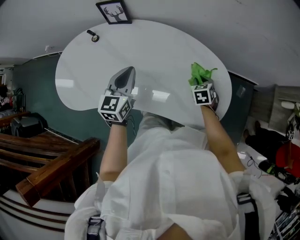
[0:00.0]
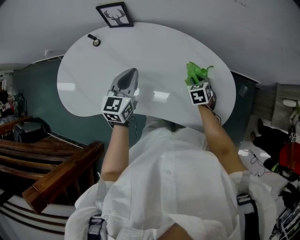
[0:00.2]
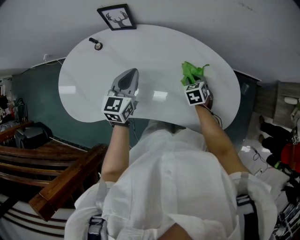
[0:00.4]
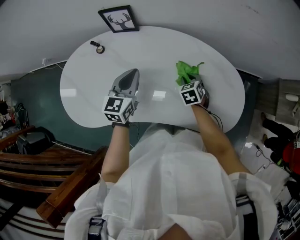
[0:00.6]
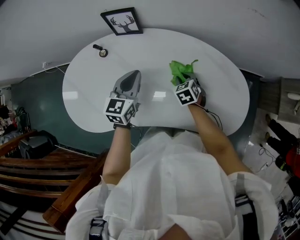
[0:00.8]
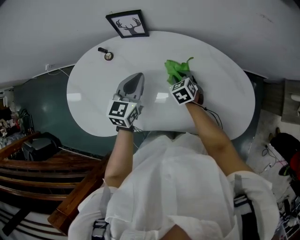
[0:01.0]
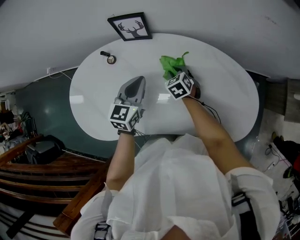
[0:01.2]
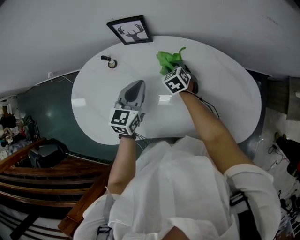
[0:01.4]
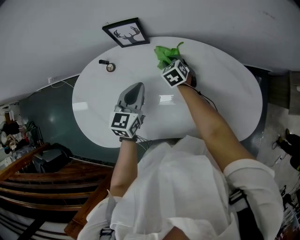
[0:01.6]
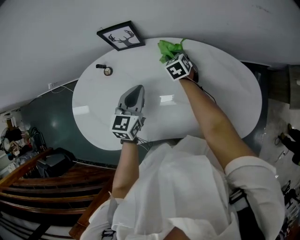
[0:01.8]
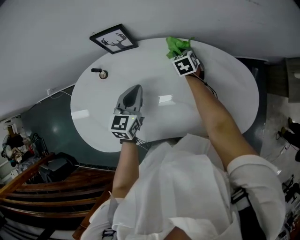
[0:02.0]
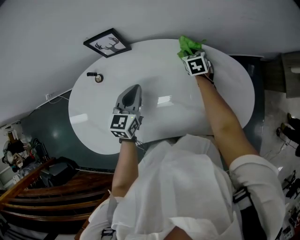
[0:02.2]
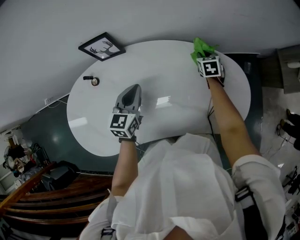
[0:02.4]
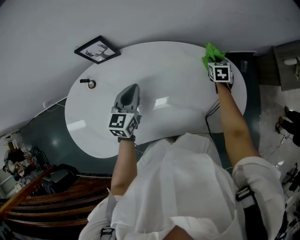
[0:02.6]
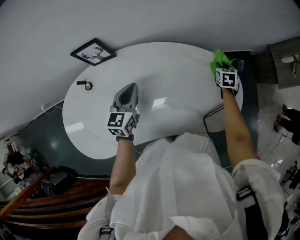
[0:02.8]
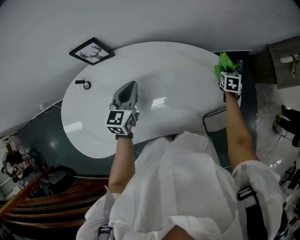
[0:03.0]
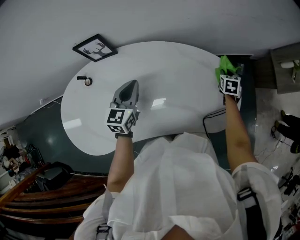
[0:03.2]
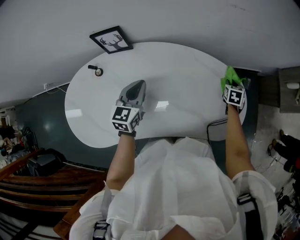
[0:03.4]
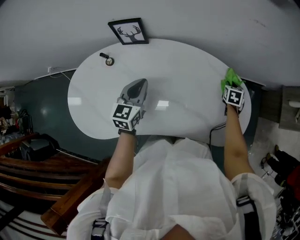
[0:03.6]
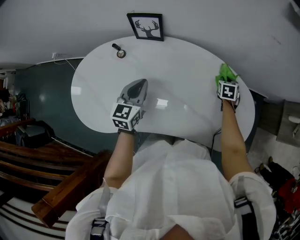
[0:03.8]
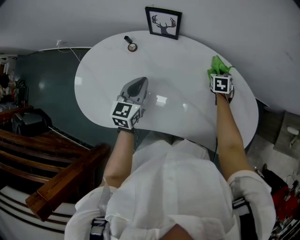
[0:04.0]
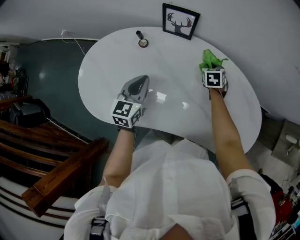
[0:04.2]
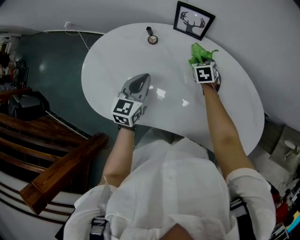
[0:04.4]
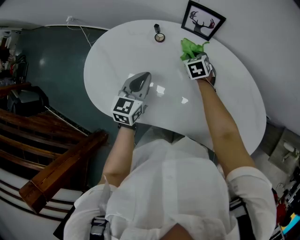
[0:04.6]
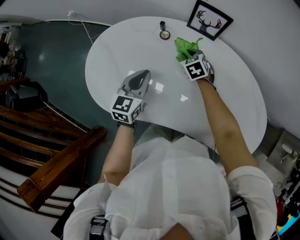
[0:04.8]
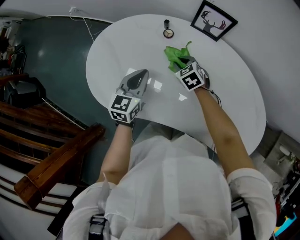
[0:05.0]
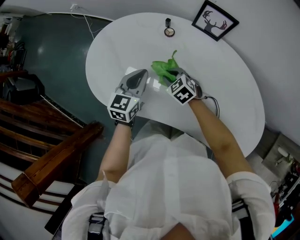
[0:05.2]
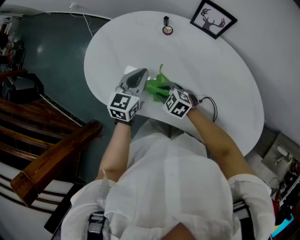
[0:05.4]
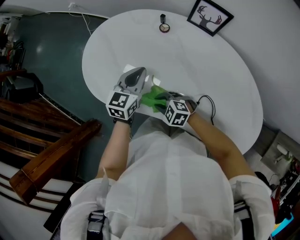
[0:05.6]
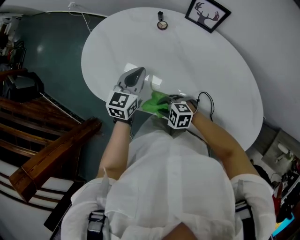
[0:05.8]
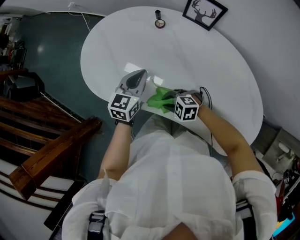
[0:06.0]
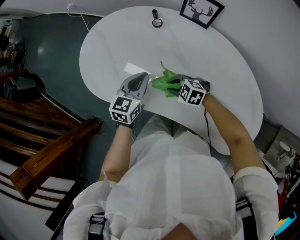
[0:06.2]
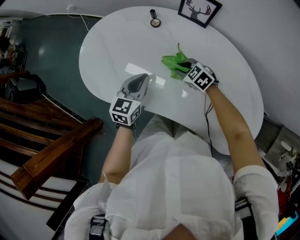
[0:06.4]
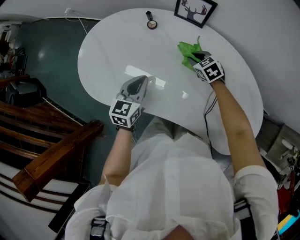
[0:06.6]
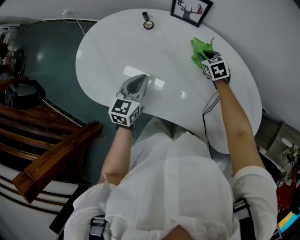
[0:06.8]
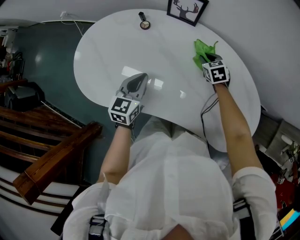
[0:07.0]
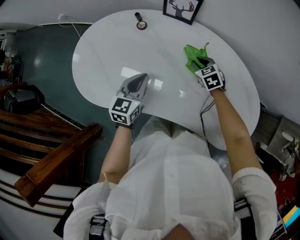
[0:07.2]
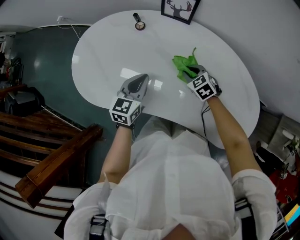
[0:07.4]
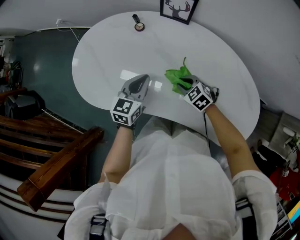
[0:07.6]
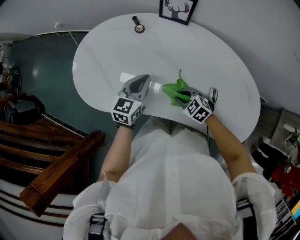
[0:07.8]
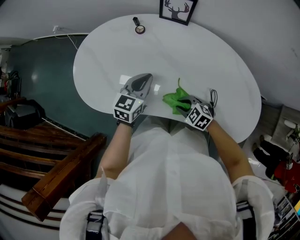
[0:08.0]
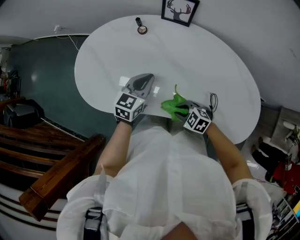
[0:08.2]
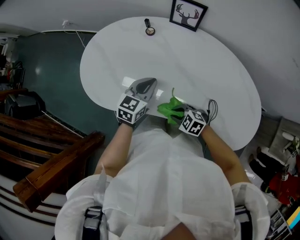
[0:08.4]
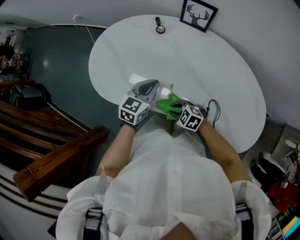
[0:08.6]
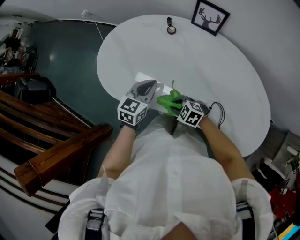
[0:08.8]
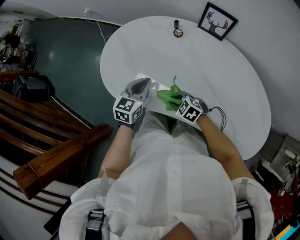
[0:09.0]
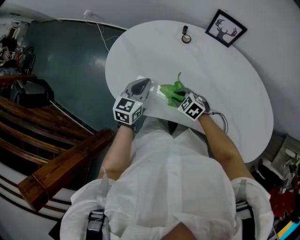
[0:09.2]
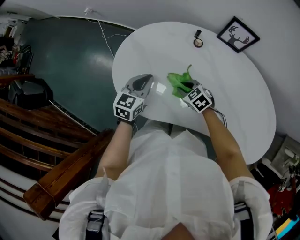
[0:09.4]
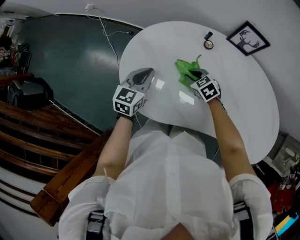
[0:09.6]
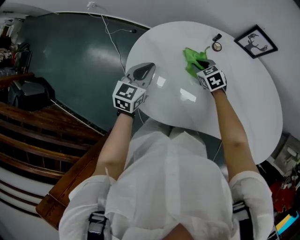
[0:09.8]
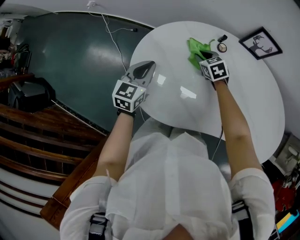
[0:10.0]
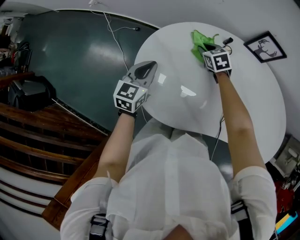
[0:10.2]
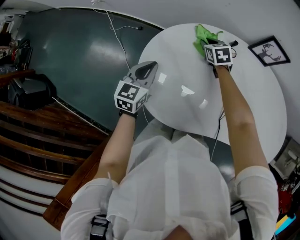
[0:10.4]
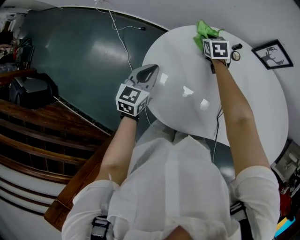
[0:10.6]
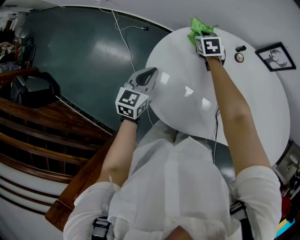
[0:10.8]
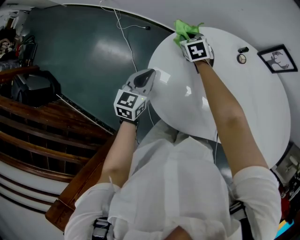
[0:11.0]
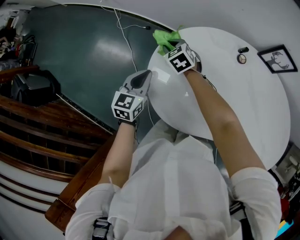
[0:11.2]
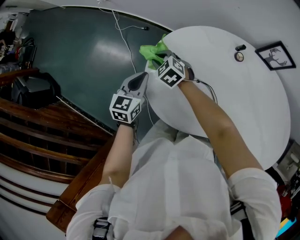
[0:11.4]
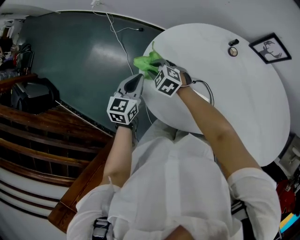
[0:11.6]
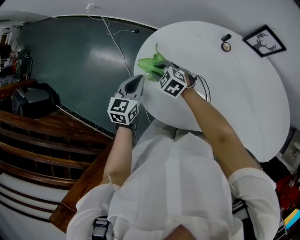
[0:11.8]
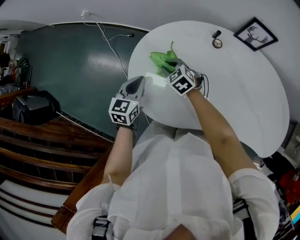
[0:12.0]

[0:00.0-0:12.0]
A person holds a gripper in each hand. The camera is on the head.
0:00.0 to 0:01.6: The right gripper shifts approximately 40 cm to the left and forward. The left gripper is displaced to the left and forward by approximately 20 cm.
0:01.6 to 0:03.0: The left gripper shifts by about 15 cm. The right gripper moves approximately 50 cm, and turns by some 50 degrees.
0:03.0 to 0:04.4: The left gripper moves approximately 25 cm, and changes its angle by roughly 30 degrees, while the right gripper changes place by approximately 50 cm, and swivels about 50 degrees.
0:04.4 to 0:06.0: The left gripper ends up about 5 cm from where it was. Meanwhile the right gripper shifts by some 35 cm, and swivels some 80 degrees.
0:06.0 to 0:07.6: The left gripper ends up approximately 10 cm from where it was; the right gripper rotates about 40 degrees.
0:07.6 to 0:09.0: Both grippers travel together to the left, about 15 cm.
0:09.0 to 0:10.4: The right gripper moves some 40 cm, and rotates some 50 degrees. Meanwhile the left gripper shifts by some 30 cm.
0:10.4 to 0:12.0: The right gripper turns by some 20 degrees.

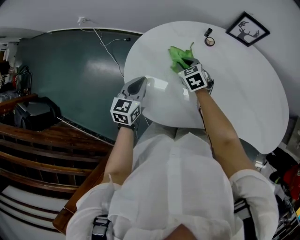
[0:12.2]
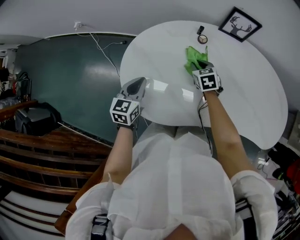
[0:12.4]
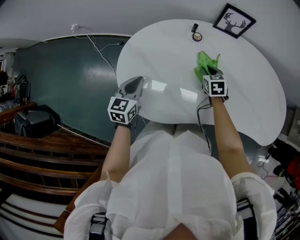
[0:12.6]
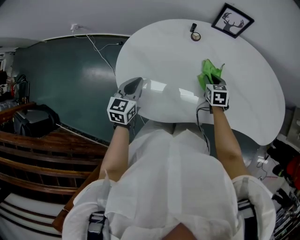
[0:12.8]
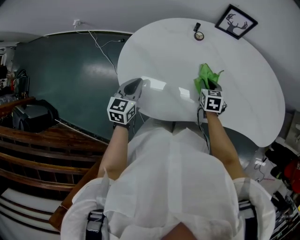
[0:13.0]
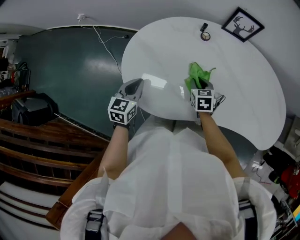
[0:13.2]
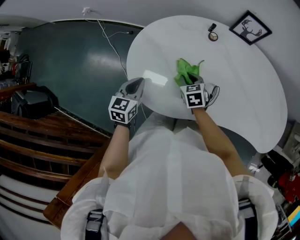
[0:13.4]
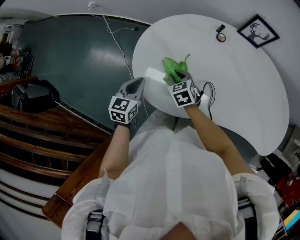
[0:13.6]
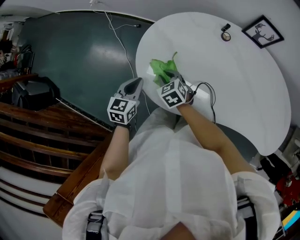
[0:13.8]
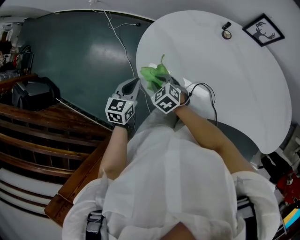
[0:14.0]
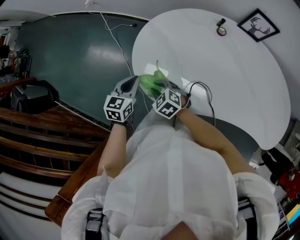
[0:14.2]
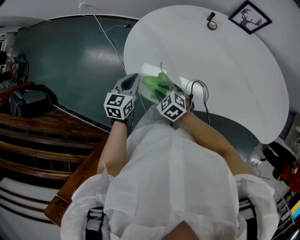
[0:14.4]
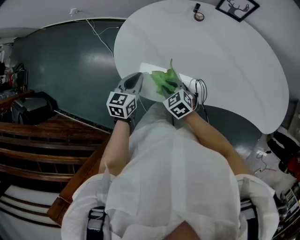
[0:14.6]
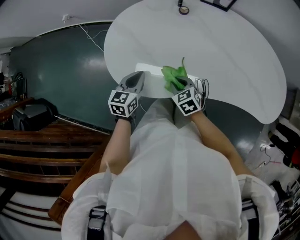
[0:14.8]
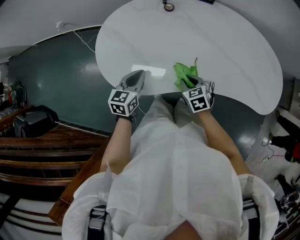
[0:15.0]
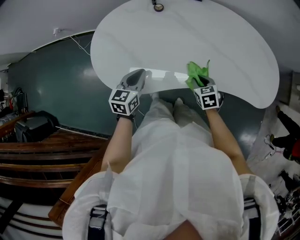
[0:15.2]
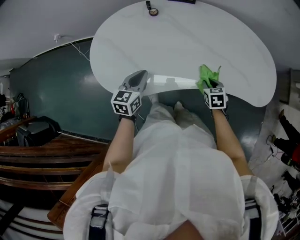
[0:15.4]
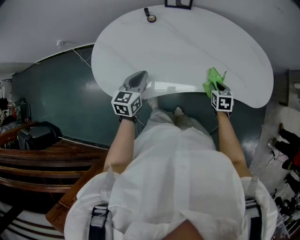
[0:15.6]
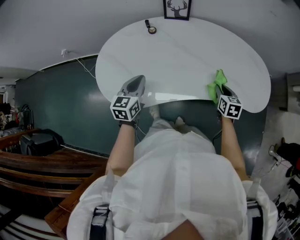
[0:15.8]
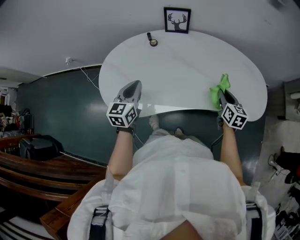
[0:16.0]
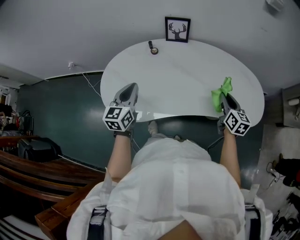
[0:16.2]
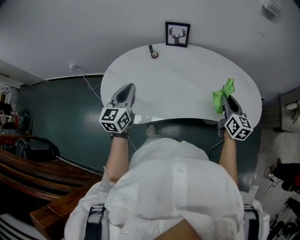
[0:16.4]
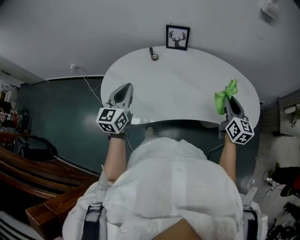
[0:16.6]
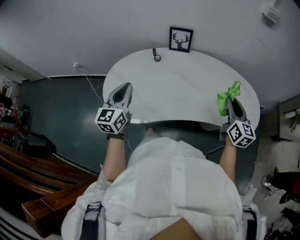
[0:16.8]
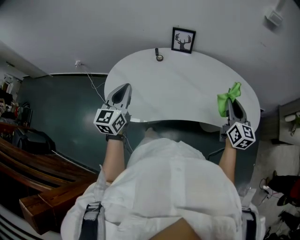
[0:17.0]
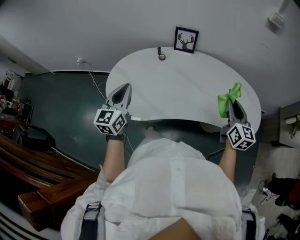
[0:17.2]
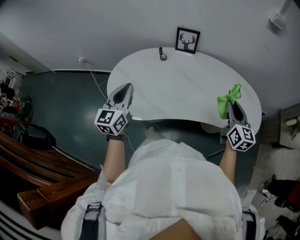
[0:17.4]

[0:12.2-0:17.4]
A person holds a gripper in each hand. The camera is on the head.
0:12.2 to 0:14.0: The right gripper moves approximately 25 cm, and changes its angle by roughly 20 degrees; the left gripper ends up about 15 cm from where it was.
0:14.0 to 0:15.6: The left gripper shifts by about 30 cm, and swivels approximately 20 degrees. The right gripper ends up approximately 60 cm from where it was, and swivels about 60 degrees.
0:15.6 to 0:17.4: The grippers both shift upward by roughly 25 cm. The left gripper turns by approximately 30 degrees. Meanwhile the right gripper points its fingers some 50 degrees further upward.

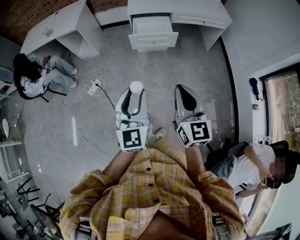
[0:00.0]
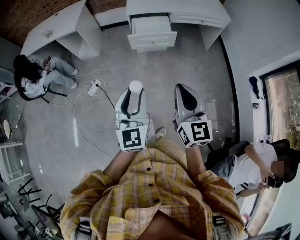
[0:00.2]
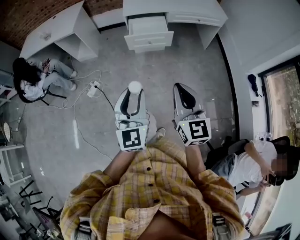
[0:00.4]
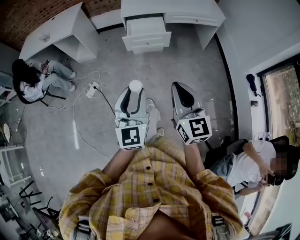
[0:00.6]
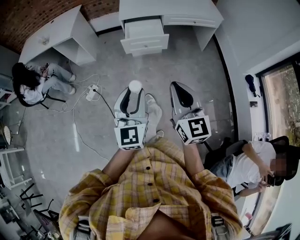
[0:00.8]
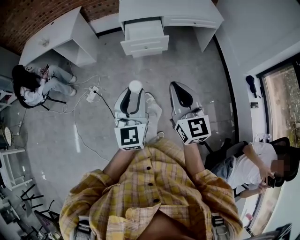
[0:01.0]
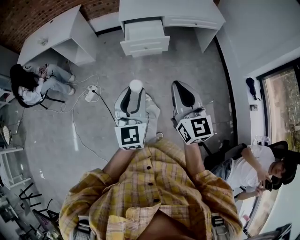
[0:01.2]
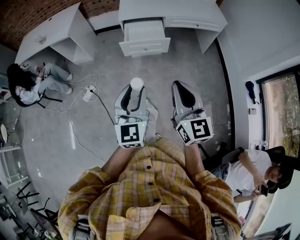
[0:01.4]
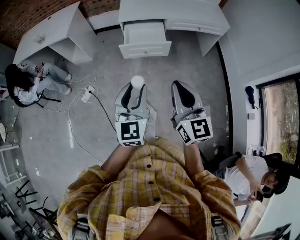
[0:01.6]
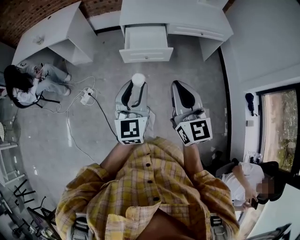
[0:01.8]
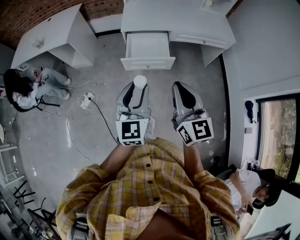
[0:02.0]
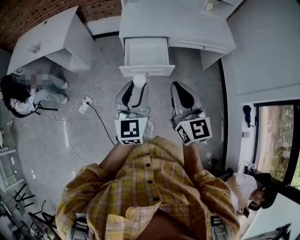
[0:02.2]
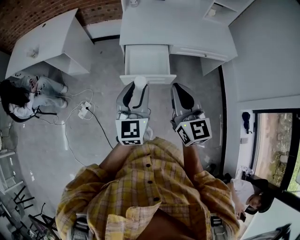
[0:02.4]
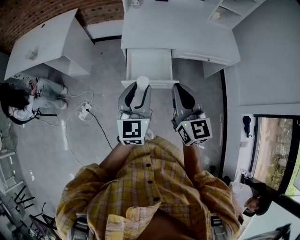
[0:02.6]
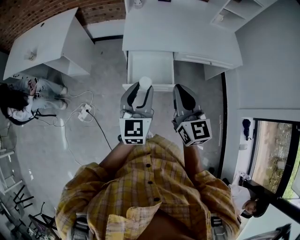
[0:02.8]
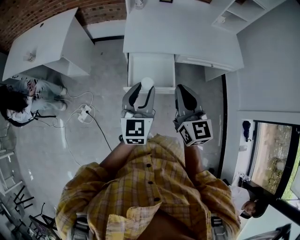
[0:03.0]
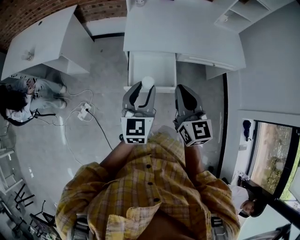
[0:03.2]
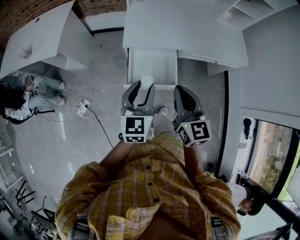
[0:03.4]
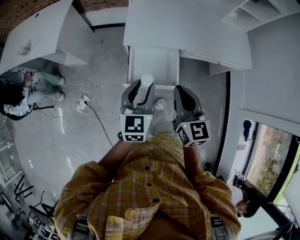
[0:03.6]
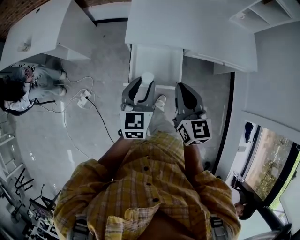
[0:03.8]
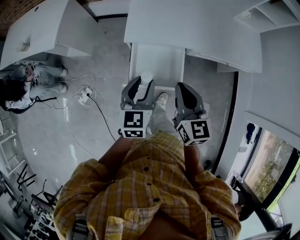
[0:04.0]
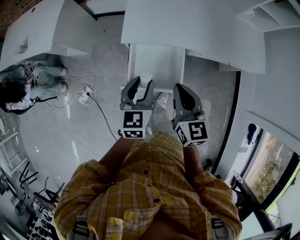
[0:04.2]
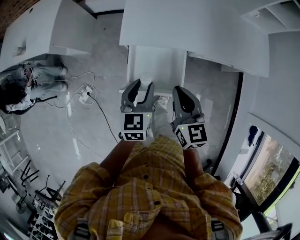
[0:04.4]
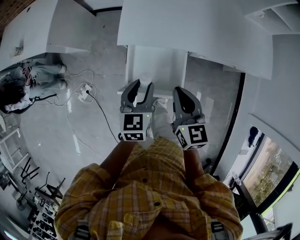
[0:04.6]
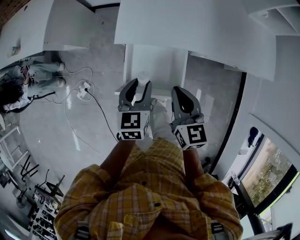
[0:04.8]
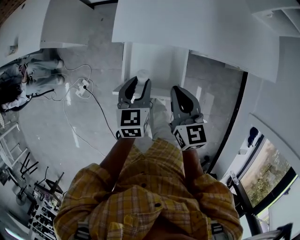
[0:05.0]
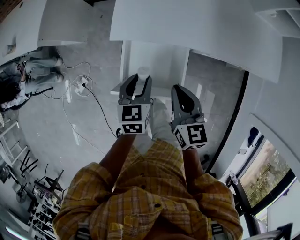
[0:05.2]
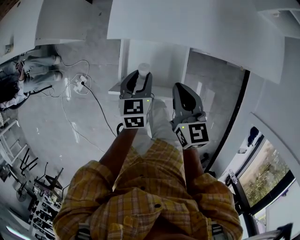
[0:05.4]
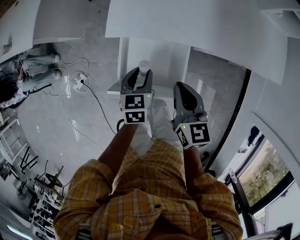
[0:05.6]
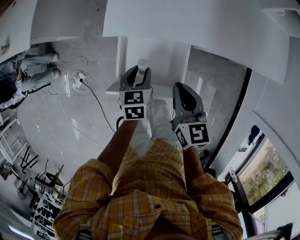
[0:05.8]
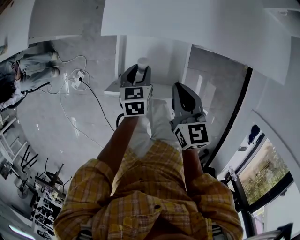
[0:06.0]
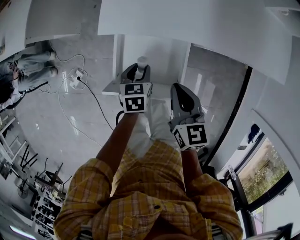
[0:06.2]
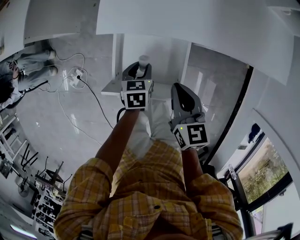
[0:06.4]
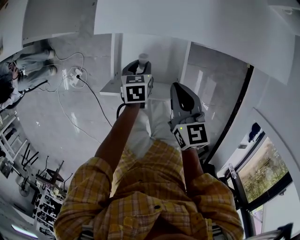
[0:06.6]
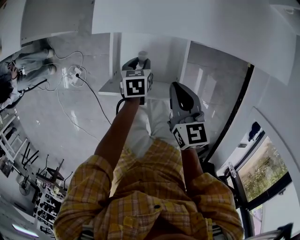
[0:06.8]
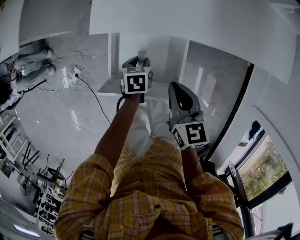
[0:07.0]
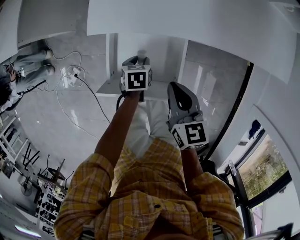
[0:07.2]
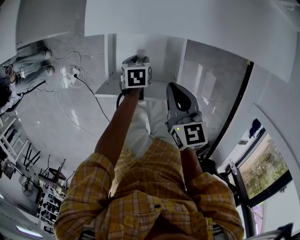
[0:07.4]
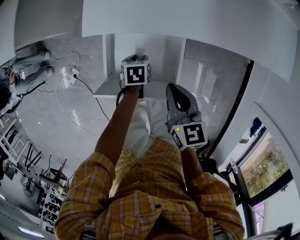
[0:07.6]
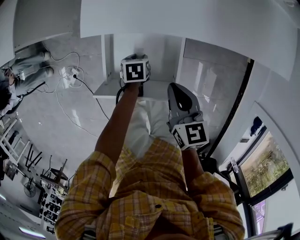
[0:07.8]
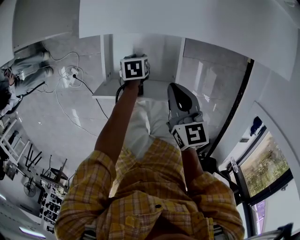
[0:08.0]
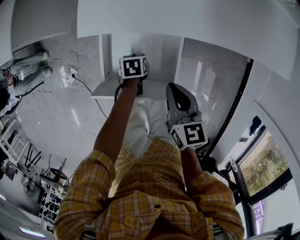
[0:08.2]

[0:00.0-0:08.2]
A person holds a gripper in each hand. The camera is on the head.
0:00.0 to 0:01.6: Both grippers travel together forward and to the right, some 15 cm.
0:01.6 to 0:03.2: Both grippers move forward, roughly 40 cm.
0:03.2 to 0:05.0: Both grippers move downward and forward, some 25 cm. The left gripper swivels approximately 30 degrees. The right gripper turns by approximately 20 degrees.
0:05.0 to 0:06.6: The right gripper moves downward, roughly 10 cm. Meanwhile the left gripper is displaced downward by approximately 20 cm, and rotates approximately 20 degrees.
0:06.6 to 0:08.2: The left gripper travels downward by about 10 cm.
